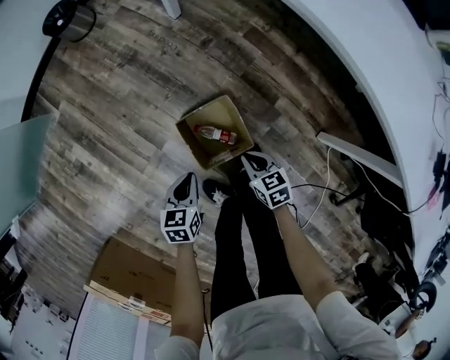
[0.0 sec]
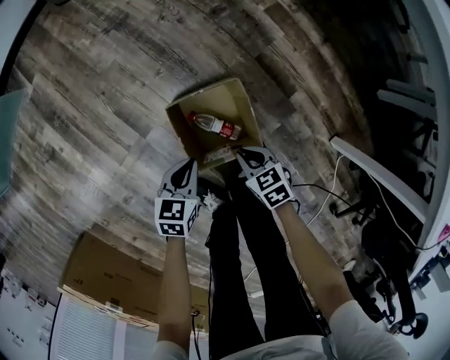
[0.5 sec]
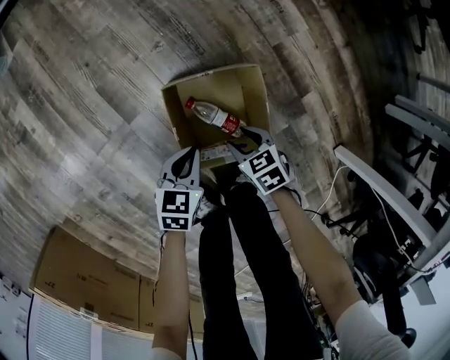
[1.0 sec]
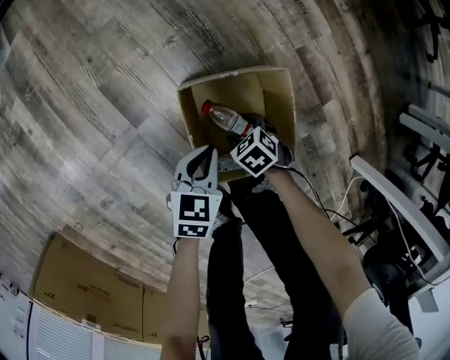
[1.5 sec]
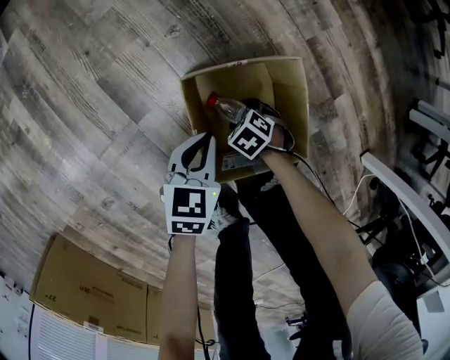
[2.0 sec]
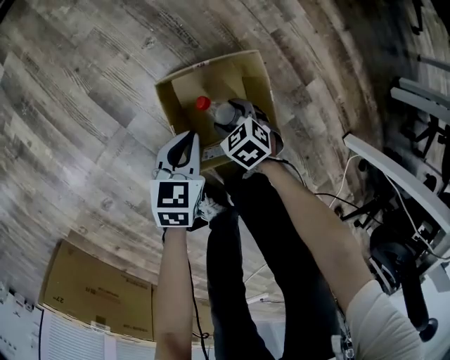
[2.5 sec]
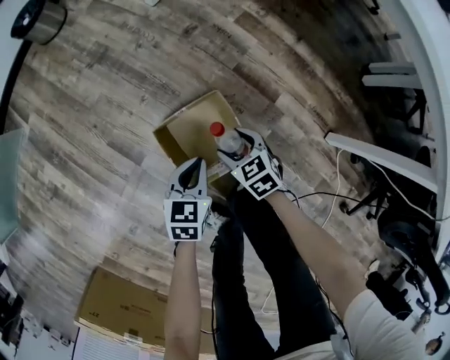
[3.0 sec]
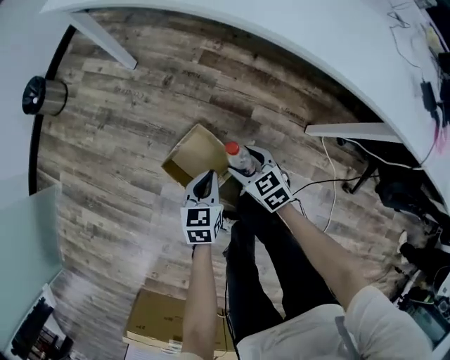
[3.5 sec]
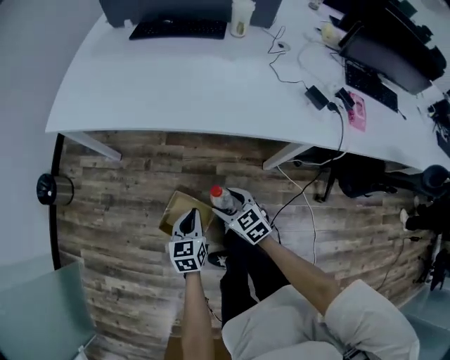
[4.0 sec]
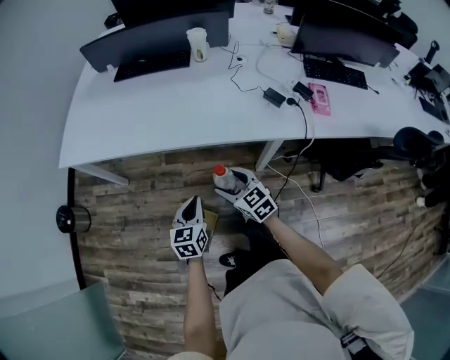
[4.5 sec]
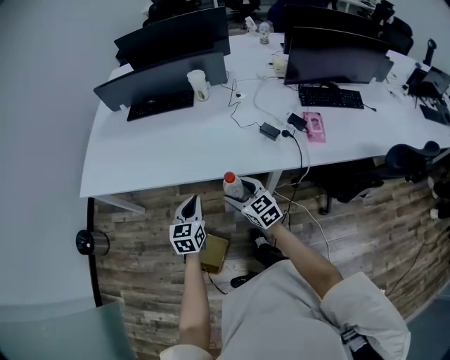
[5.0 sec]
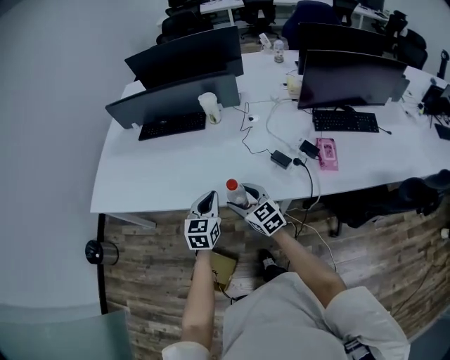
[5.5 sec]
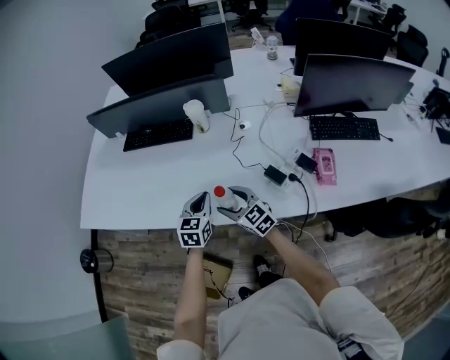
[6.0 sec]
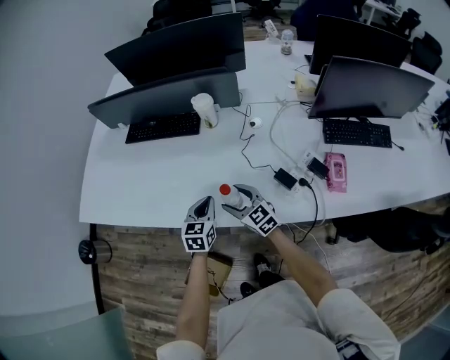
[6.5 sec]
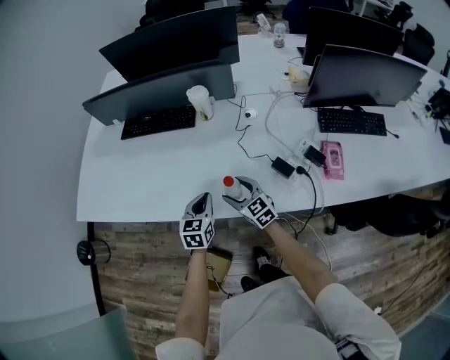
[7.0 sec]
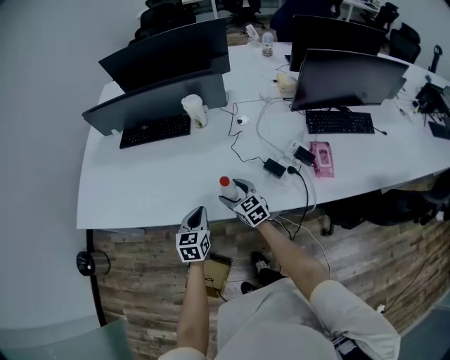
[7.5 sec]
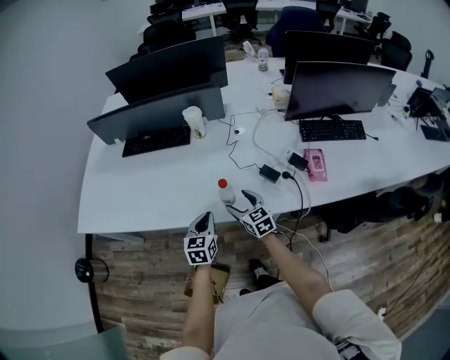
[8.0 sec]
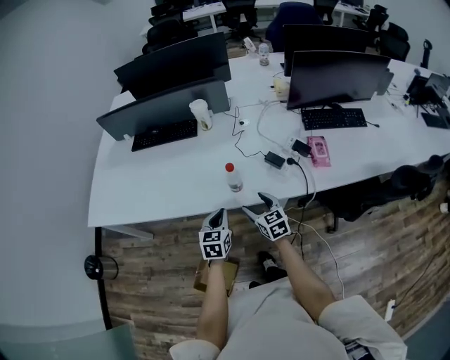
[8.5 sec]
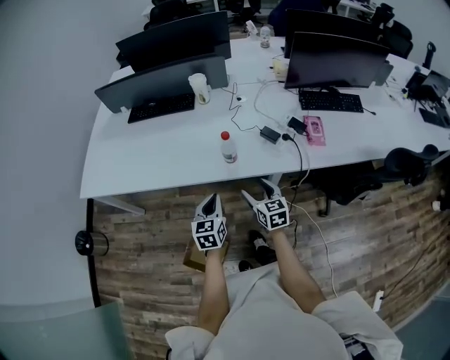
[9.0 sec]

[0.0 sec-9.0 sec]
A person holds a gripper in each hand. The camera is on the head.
0.0 sec to 2.0 sec: The grippers both shift downward by approximately 40 cm. The right gripper rotates roughly 50 degrees, and opens its fingers.
2.0 sec to 4.5 sec: The grippers both shift upward by about 80 cm. The right gripper angles its fingers upward, by some 50 degrees. Meanwhile the left gripper turns by roughly 40 degrees.
4.5 sec to 7.0 sec: The two grippers go about 30 cm forward and to the right.
7.0 sec to 9.0 sec: The two grippers go roughly 20 cm backward. The right gripper turns by some 30 degrees.

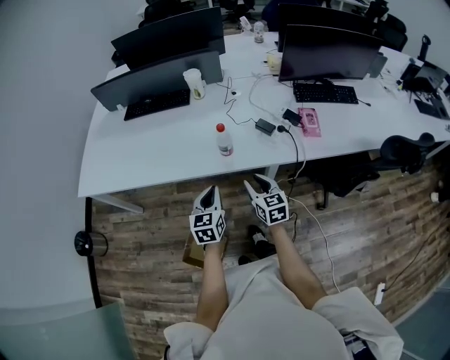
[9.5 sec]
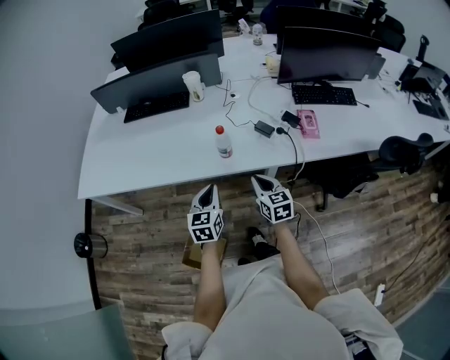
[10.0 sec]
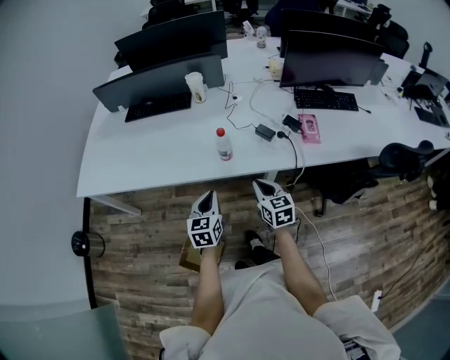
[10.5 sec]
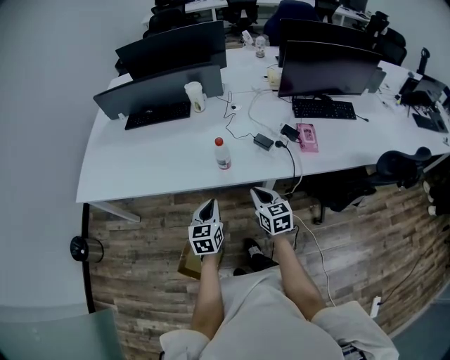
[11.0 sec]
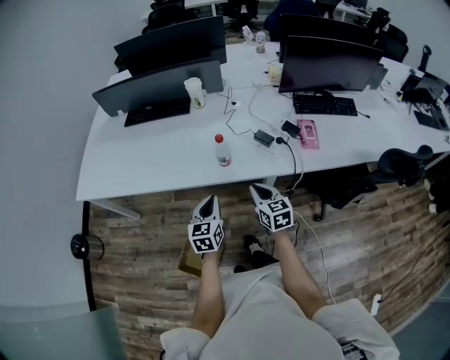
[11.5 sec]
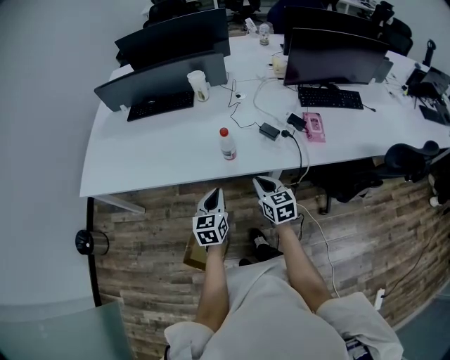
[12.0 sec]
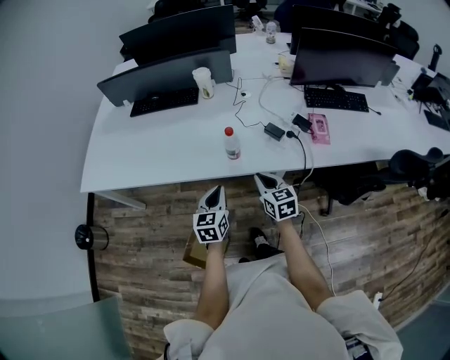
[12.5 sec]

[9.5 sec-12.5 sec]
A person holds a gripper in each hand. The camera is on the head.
9.5 sec to 11.0 sec: The right gripper closes up.
11.0 sec to 12.5 sec: The grippers move only a little.

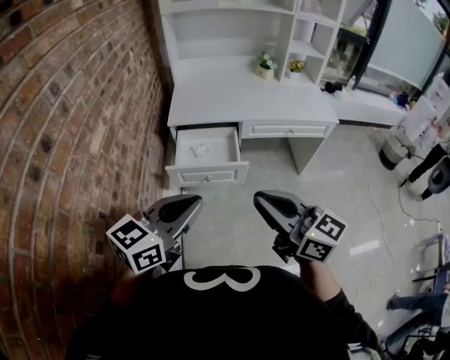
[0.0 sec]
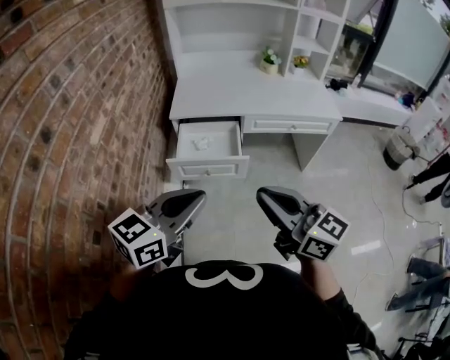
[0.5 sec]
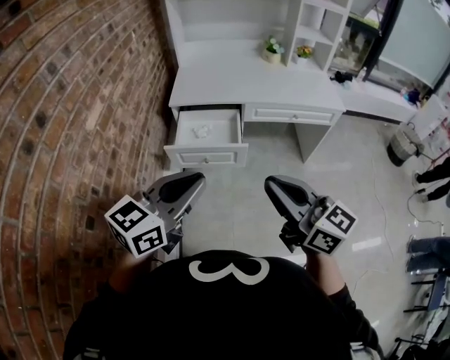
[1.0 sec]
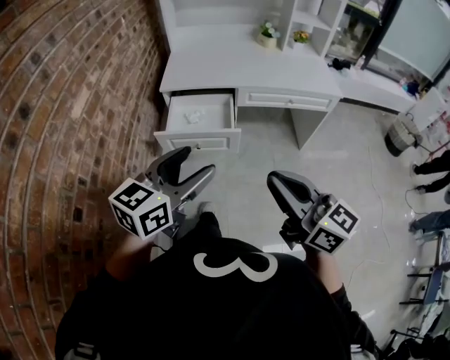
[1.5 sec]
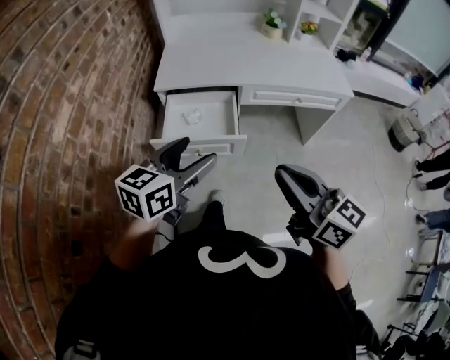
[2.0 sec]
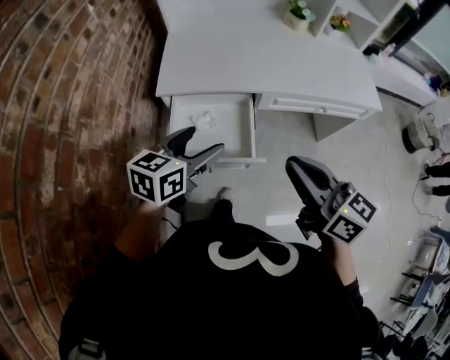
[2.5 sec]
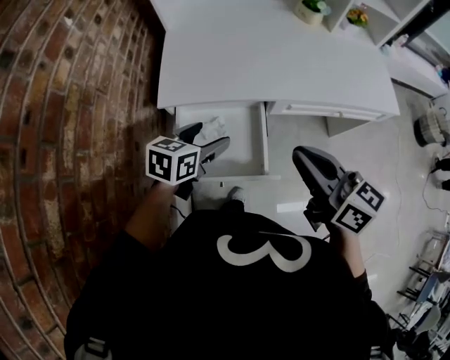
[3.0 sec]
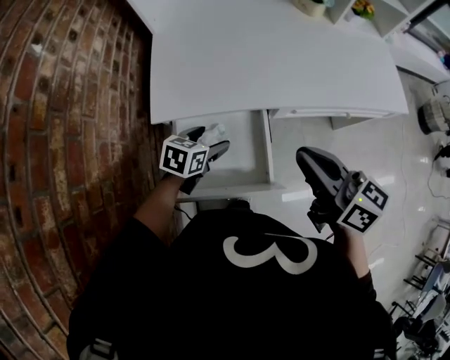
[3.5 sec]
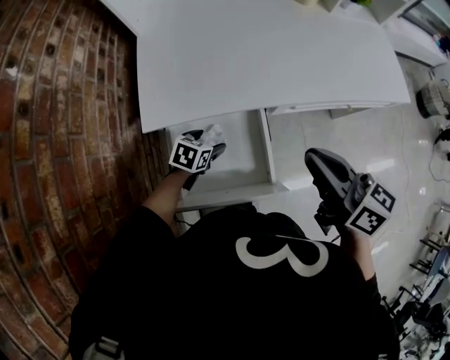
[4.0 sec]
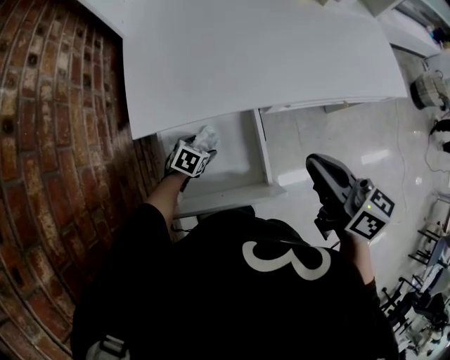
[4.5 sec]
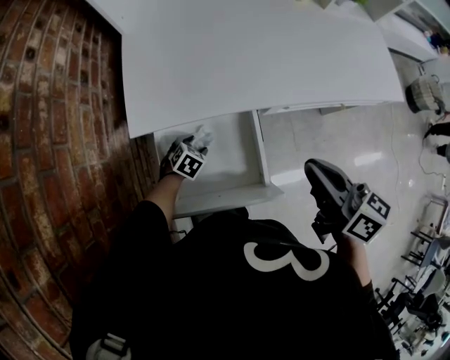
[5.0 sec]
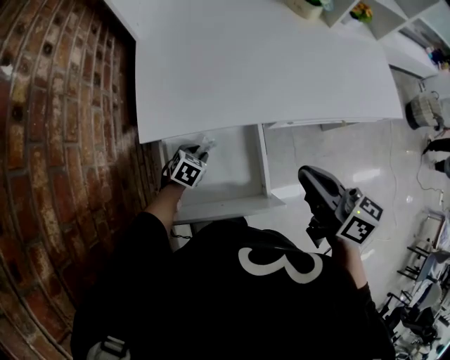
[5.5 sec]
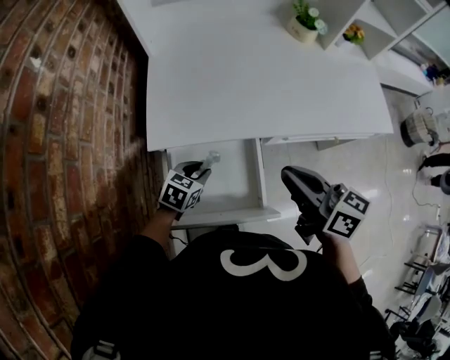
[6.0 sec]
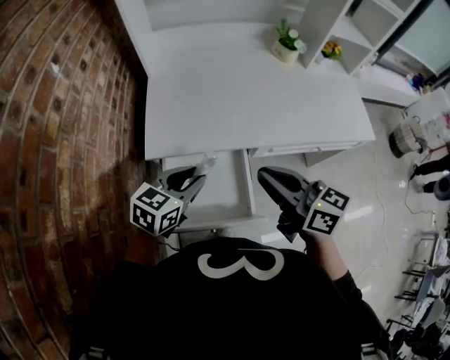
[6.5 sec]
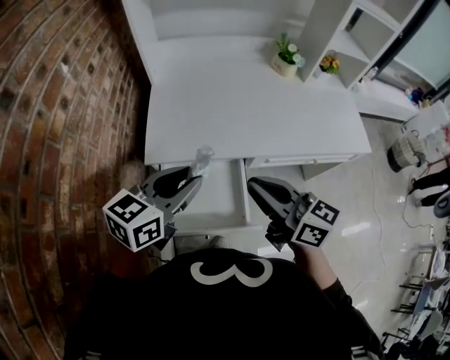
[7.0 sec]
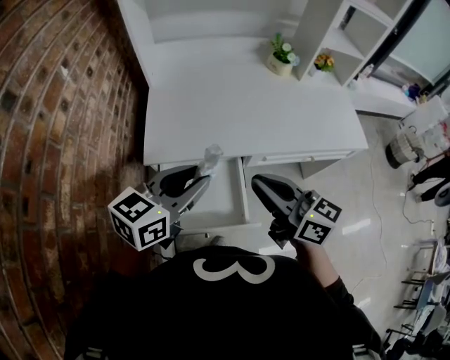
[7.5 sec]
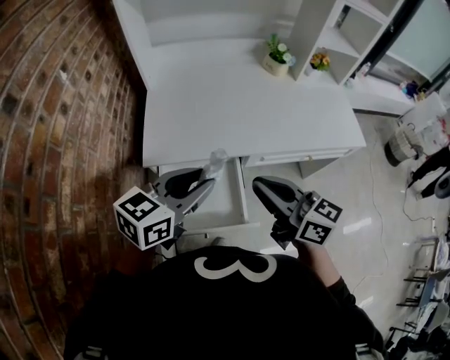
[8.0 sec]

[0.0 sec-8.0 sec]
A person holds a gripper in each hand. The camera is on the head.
0.0 sec to 2.0 sec: The left gripper is displaced forward and downward by approximately 20 cm, and opens; the right gripper travels forward, to the right and downward by roughly 15 cm.
2.0 sec to 4.0 sec: The right gripper goes roughly 35 cm forward, and turns by some 20 degrees. Meanwhile the left gripper moves downward and forward, about 50 cm, and tips its fingers downward by approximately 40 degrees.
4.0 sec to 6.0 sec: The left gripper shifts roughly 5 cm upward, and closes.
6.0 sec to 8.0 sec: The left gripper heads upward, covering roughly 30 cm, and tilts its fingers some 30 degrees upward; the right gripper heads upward, covering some 5 cm.

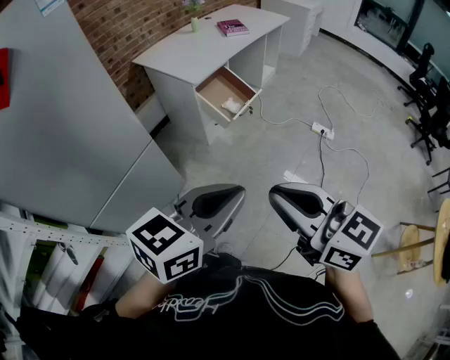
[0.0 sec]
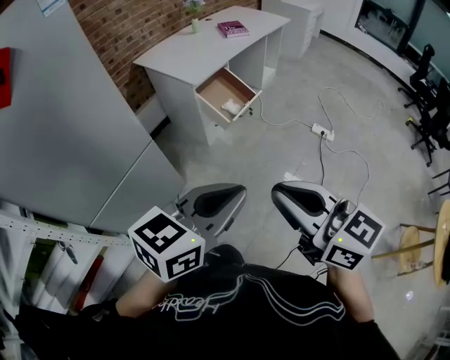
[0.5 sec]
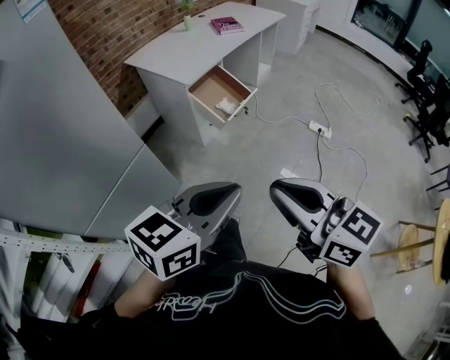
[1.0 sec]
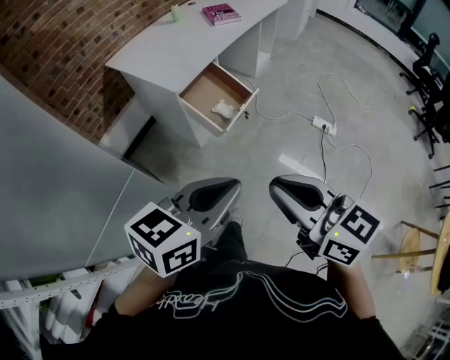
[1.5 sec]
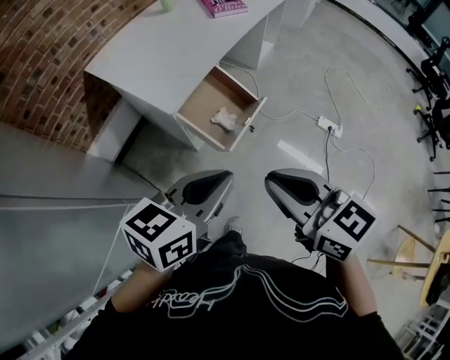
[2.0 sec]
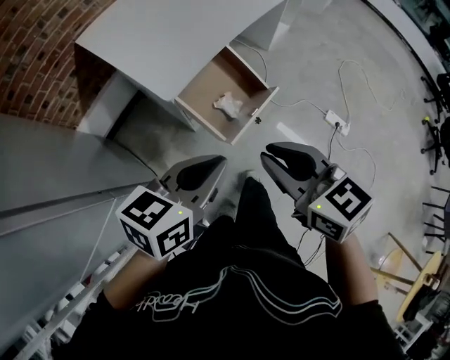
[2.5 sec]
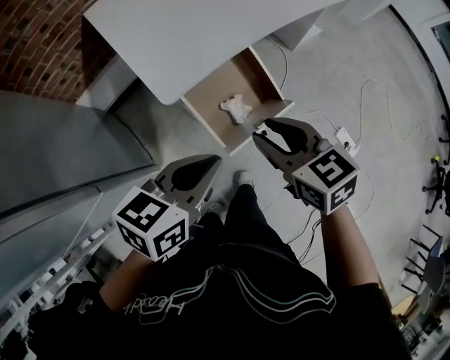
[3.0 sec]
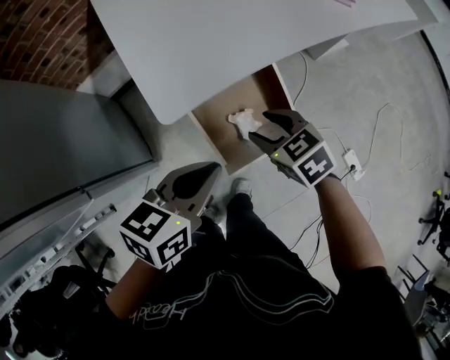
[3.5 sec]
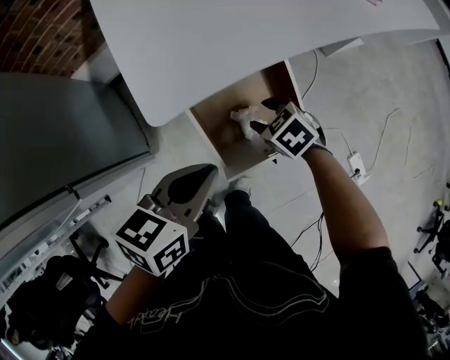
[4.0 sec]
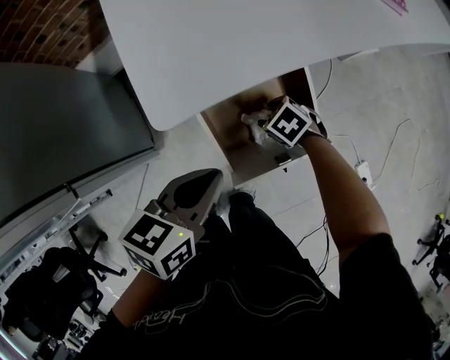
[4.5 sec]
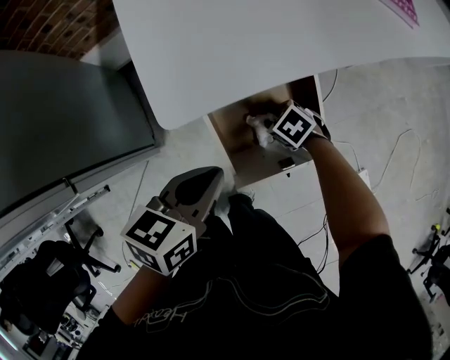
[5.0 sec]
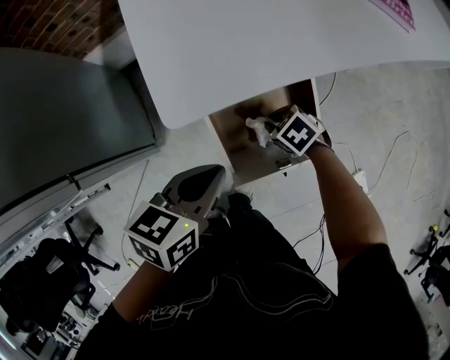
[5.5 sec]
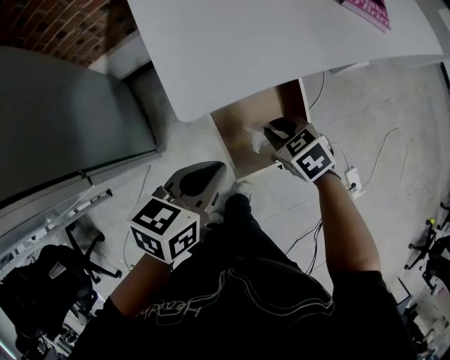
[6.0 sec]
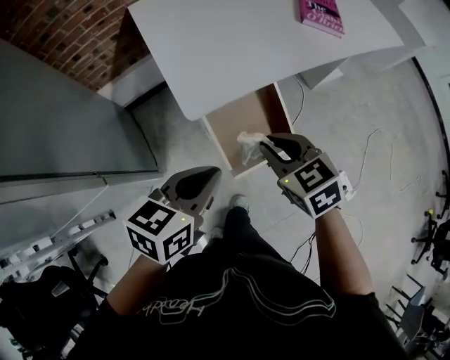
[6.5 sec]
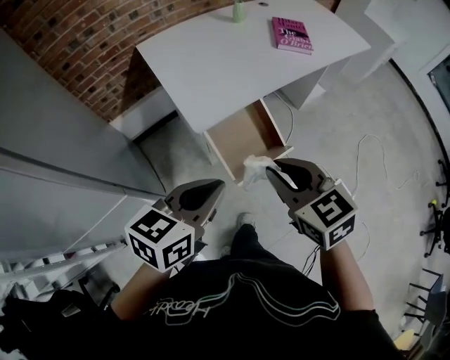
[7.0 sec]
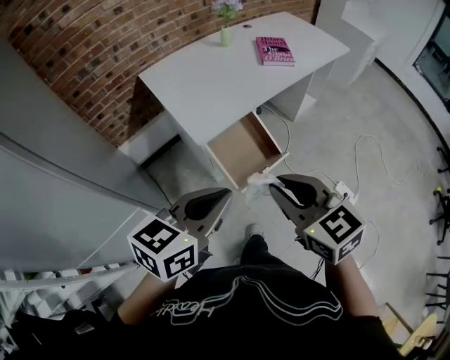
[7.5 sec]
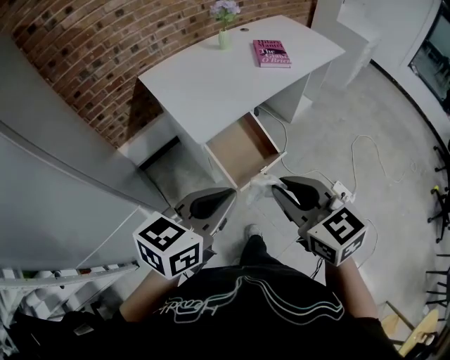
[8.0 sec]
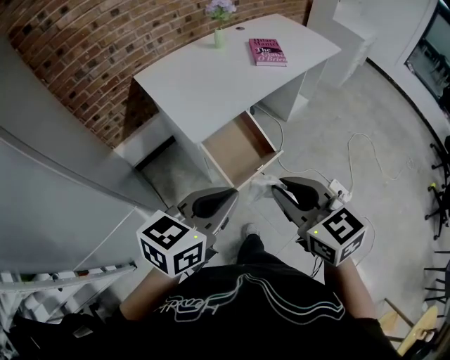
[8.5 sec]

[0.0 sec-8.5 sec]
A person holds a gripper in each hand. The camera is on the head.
0.0 sec to 2.0 sec: The two grippers travel together, forward, roughly 50 cm.
2.0 sec to 4.0 sec: The left gripper changes place by approximately 40 cm, and turns by roughly 40 degrees. The right gripper travels downward by approximately 50 cm, points its fingers some 40 degrees further downward, and opens its fingers.
4.0 sec to 6.5 sec: The left gripper travels upward by about 10 cm; the right gripper heads upward, covering some 25 cm, rotates approximately 30 degrees, and closes up.
6.5 sec to 8.5 sec: The right gripper goes approximately 35 cm backward and upward, and swivels some 30 degrees. The left gripper moves upward and backward, roughly 25 cm, and rotates some 20 degrees.
